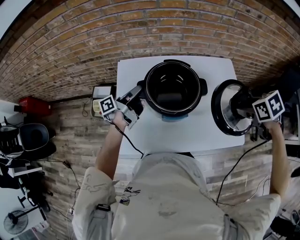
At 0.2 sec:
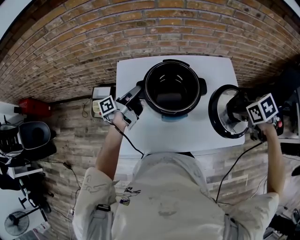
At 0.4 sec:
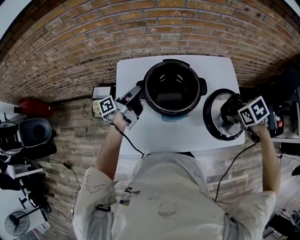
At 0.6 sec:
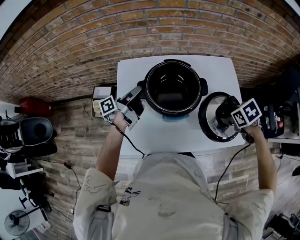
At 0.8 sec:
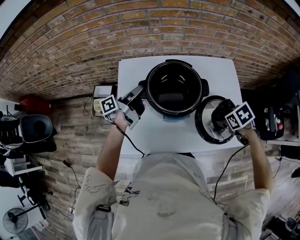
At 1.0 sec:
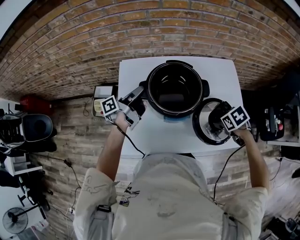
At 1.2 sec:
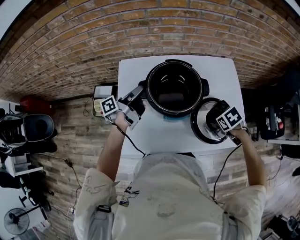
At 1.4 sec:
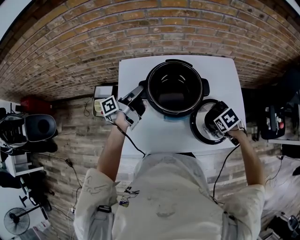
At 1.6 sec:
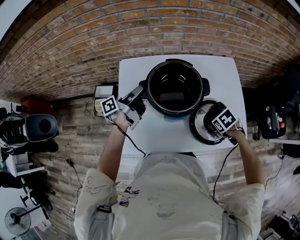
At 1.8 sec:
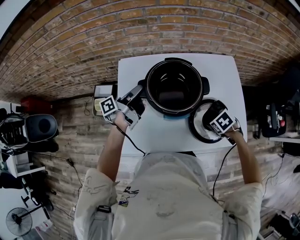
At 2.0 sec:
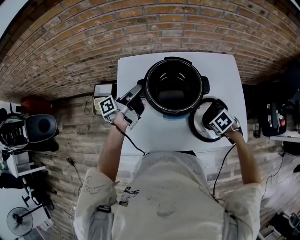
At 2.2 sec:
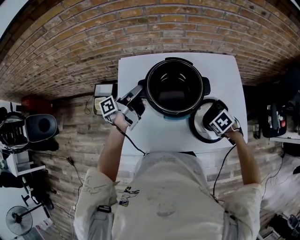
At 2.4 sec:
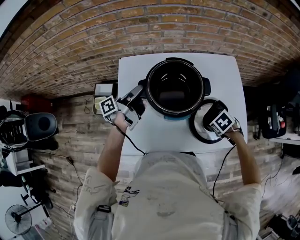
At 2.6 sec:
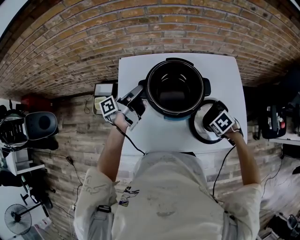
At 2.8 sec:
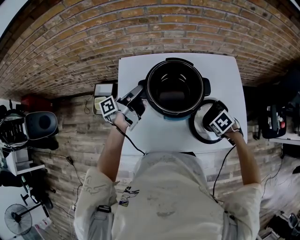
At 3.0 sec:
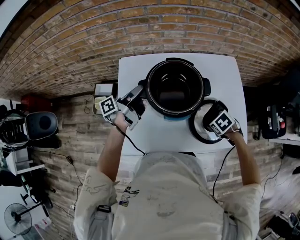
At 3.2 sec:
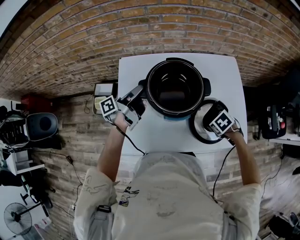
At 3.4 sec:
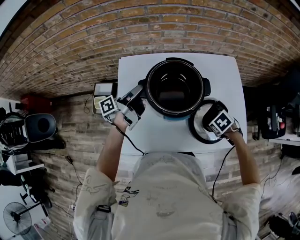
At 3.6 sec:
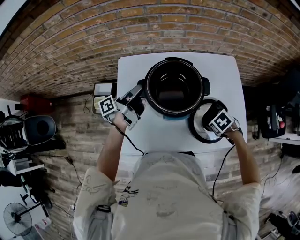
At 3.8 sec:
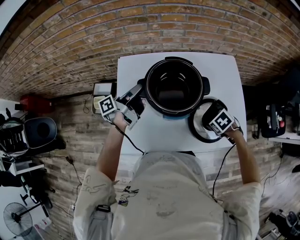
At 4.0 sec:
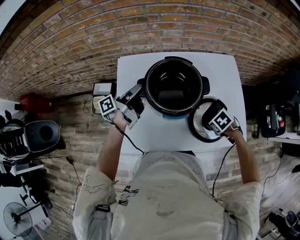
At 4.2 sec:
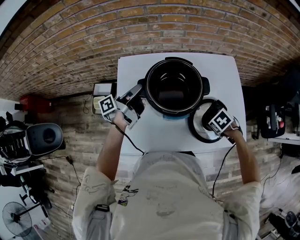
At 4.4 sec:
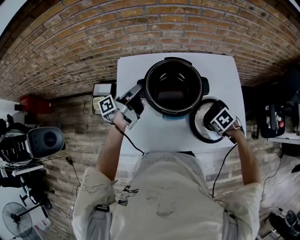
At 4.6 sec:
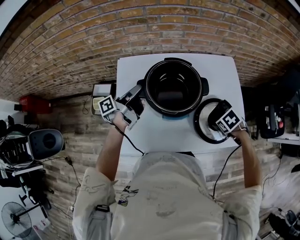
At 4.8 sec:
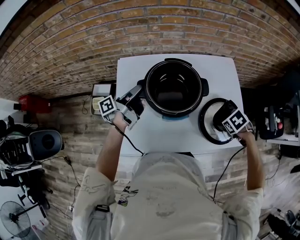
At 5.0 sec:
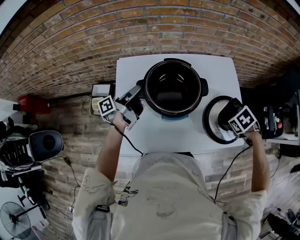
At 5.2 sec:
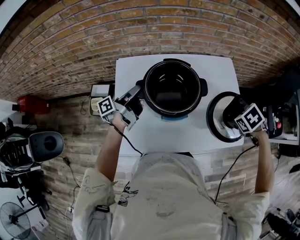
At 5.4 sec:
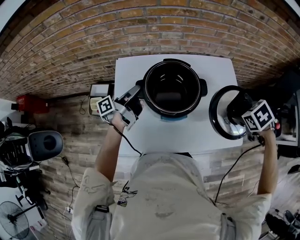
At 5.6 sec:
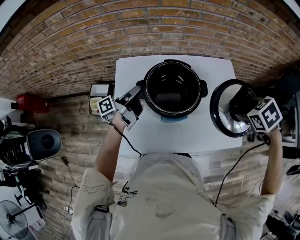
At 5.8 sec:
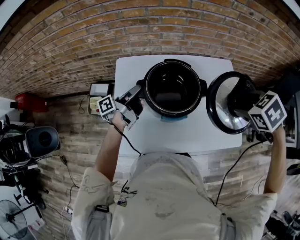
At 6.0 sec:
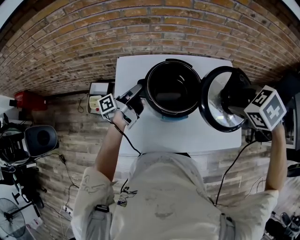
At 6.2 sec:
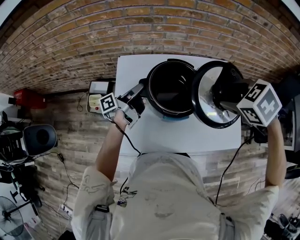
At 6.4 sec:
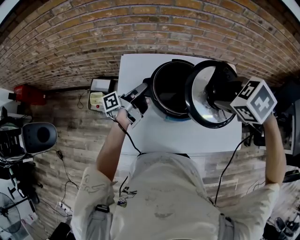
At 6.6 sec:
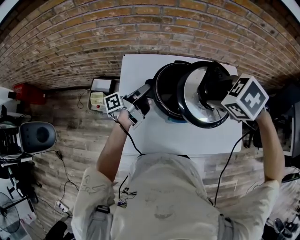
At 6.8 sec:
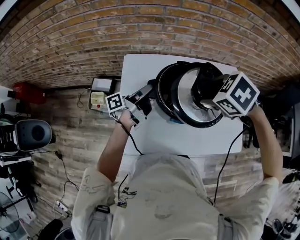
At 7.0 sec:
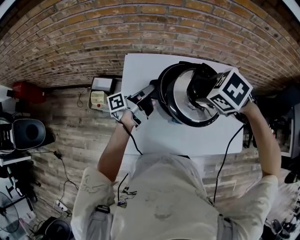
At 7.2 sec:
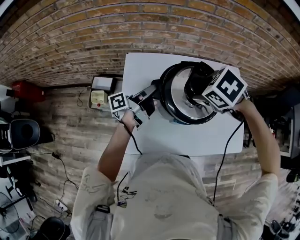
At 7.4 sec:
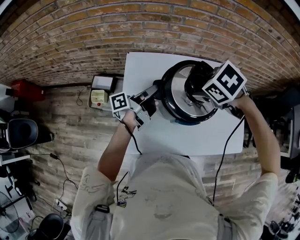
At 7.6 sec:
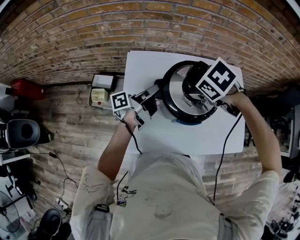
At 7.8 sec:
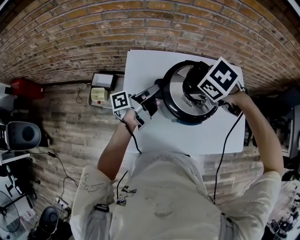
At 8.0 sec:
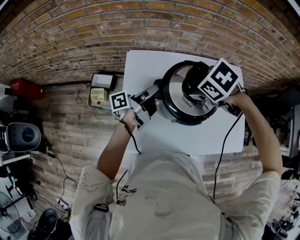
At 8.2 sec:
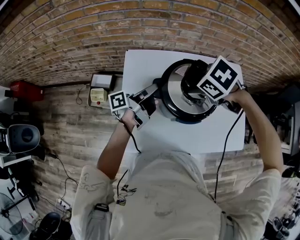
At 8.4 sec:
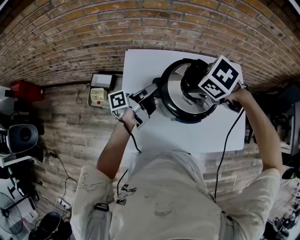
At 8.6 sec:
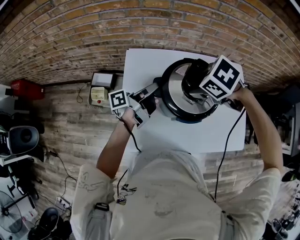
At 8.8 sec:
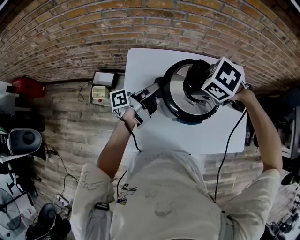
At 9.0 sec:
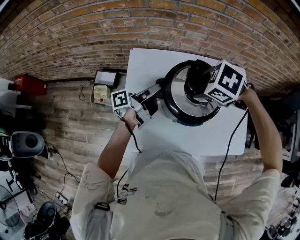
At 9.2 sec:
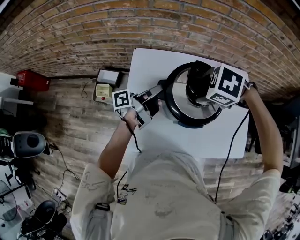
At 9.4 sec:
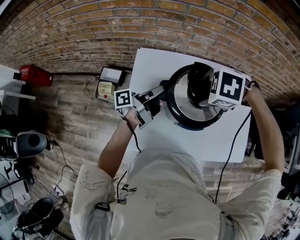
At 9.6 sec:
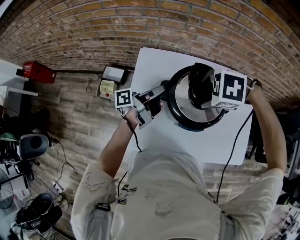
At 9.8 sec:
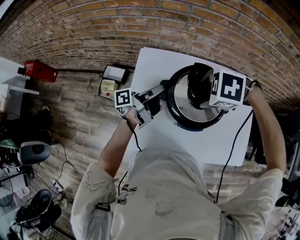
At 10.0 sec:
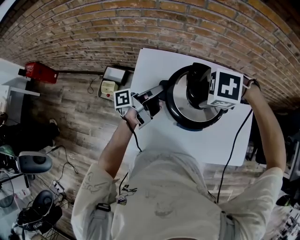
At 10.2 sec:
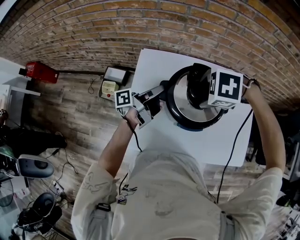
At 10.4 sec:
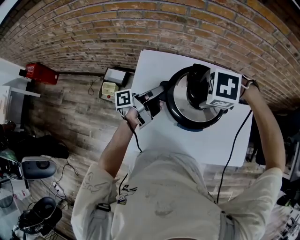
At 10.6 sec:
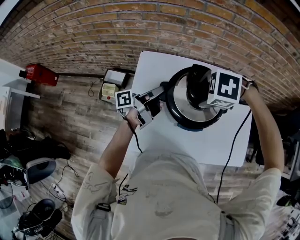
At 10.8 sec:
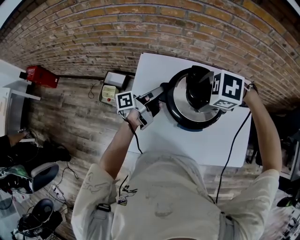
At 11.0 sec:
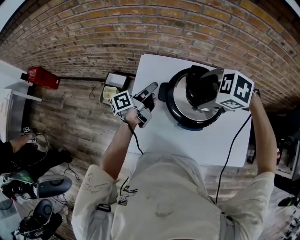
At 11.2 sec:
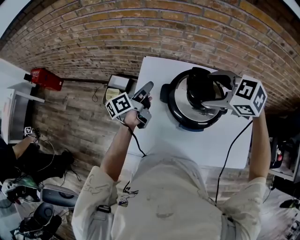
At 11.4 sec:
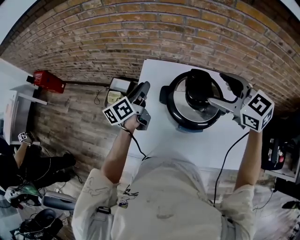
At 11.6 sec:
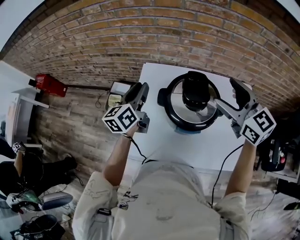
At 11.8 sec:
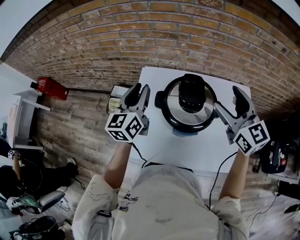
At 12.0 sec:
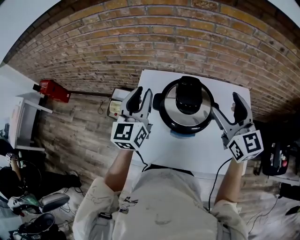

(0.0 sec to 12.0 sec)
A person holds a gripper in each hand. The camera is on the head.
0.0 sec - 1.6 sec: The right gripper is displaced downward by approximately 20 cm.
1.6 sec - 3.0 sec: The grippers stay close to where they were, moving slightly.
3.0 sec - 4.4 sec: Both grippers stay about where they are.
4.4 sec - 6.0 sec: The right gripper heads upward, covering about 25 cm.
6.0 sec - 7.6 sec: The right gripper moves roughly 20 cm.
7.6 sec - 9.0 sec: There are only small adjustments of the grippers.
9.0 sec - 10.4 sec: The right gripper rotates approximately 20 degrees.
10.4 sec - 12.0 sec: The two grippers go some 15 cm upward. The left gripper rotates around the line of its fingers by some 90 degrees, clockwise from behind. Meanwhile the right gripper tilts its fingers some 70 degrees upward.

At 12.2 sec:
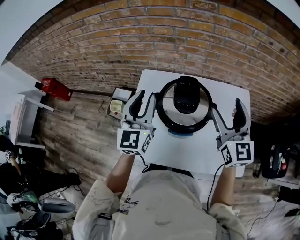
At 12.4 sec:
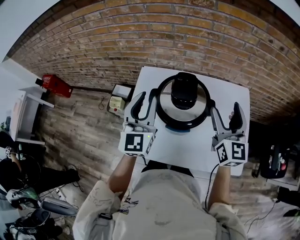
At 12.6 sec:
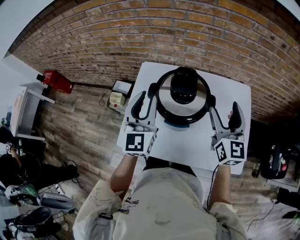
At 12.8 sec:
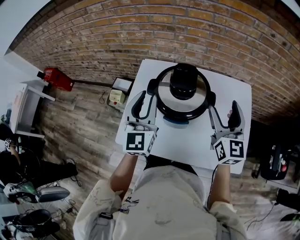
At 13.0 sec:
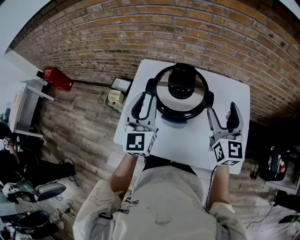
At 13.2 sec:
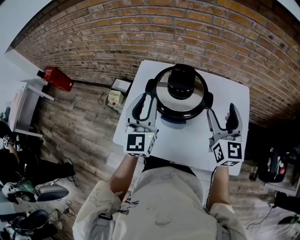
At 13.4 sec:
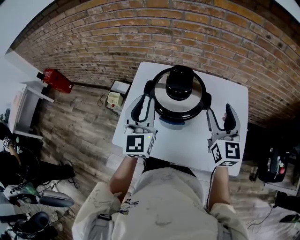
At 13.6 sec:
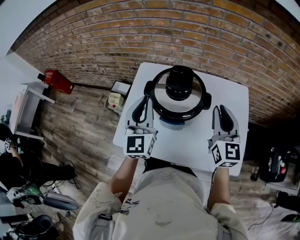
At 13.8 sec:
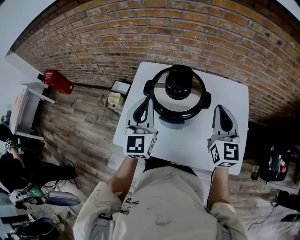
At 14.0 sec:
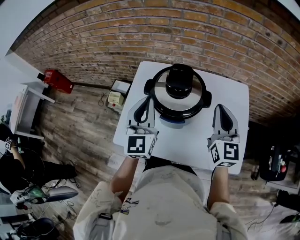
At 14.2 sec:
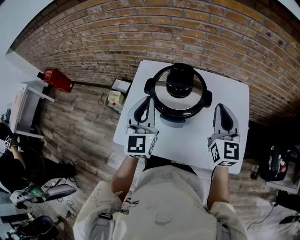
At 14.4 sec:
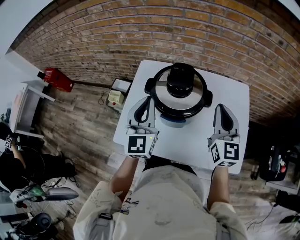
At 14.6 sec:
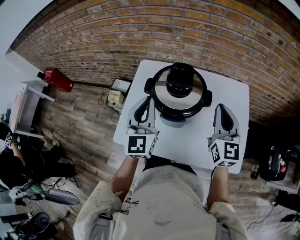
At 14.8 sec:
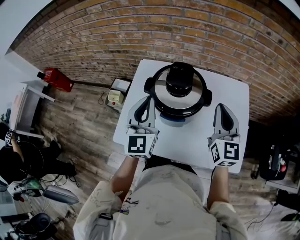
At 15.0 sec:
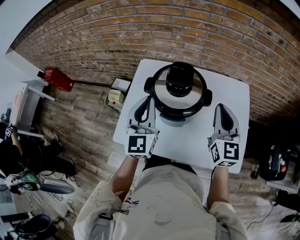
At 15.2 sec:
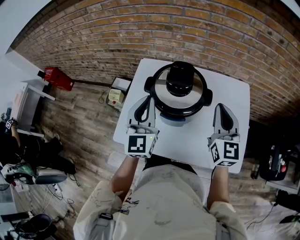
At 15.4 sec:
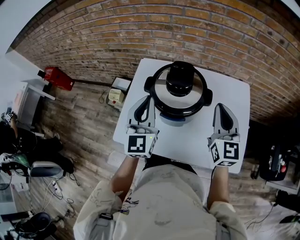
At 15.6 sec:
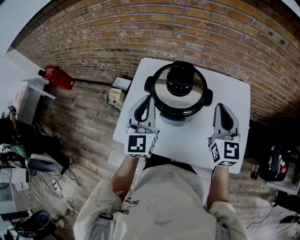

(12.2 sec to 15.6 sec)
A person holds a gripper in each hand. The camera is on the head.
12.2 sec - 13.8 sec: The right gripper is displaced downward by approximately 5 cm, and closes, while the left gripper moves backward, about 5 cm, and closes up.
13.8 sec - 15.6 sec: Neither gripper changes place.

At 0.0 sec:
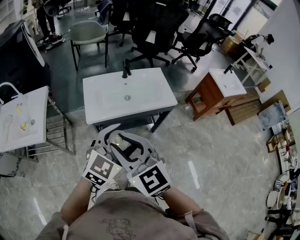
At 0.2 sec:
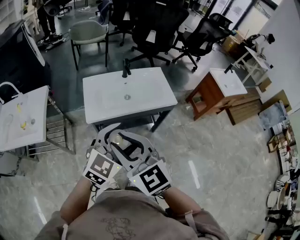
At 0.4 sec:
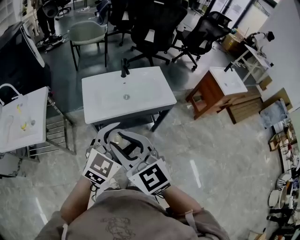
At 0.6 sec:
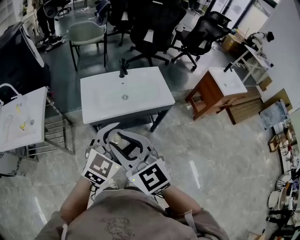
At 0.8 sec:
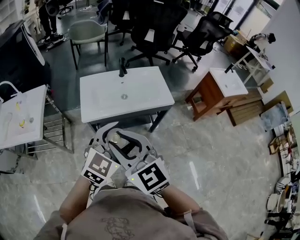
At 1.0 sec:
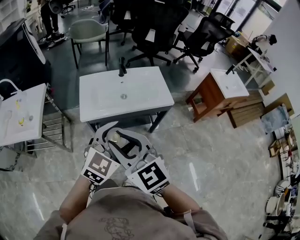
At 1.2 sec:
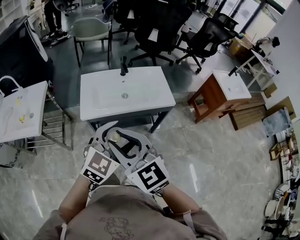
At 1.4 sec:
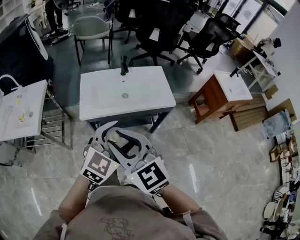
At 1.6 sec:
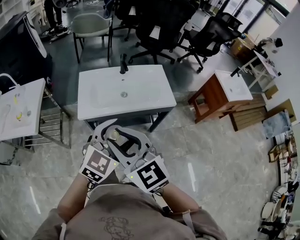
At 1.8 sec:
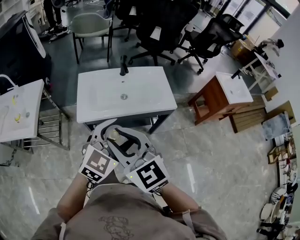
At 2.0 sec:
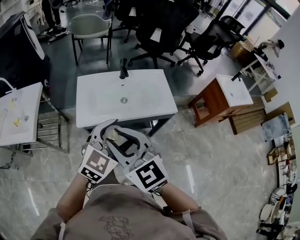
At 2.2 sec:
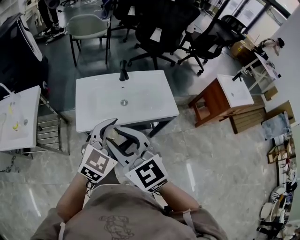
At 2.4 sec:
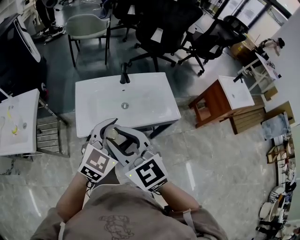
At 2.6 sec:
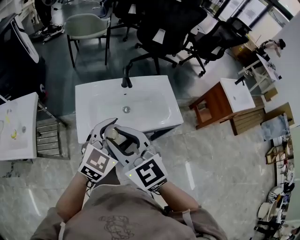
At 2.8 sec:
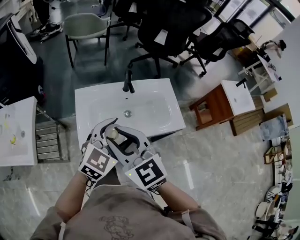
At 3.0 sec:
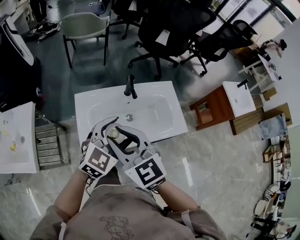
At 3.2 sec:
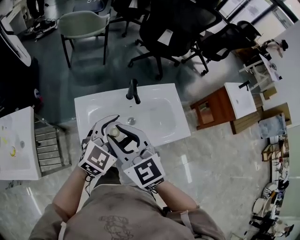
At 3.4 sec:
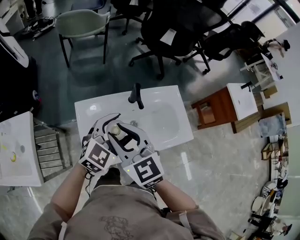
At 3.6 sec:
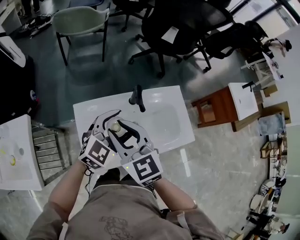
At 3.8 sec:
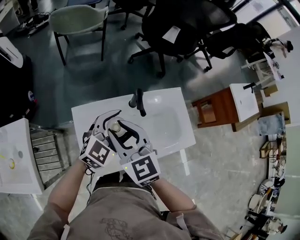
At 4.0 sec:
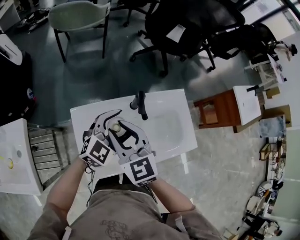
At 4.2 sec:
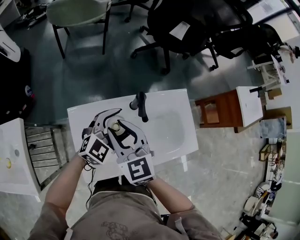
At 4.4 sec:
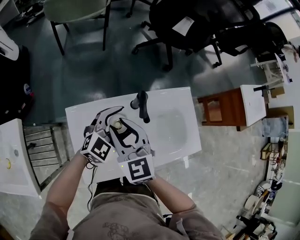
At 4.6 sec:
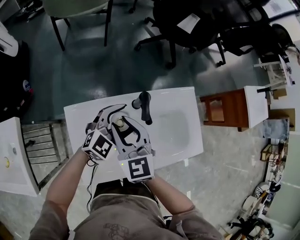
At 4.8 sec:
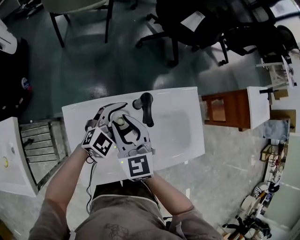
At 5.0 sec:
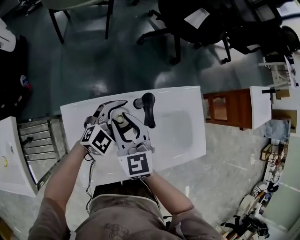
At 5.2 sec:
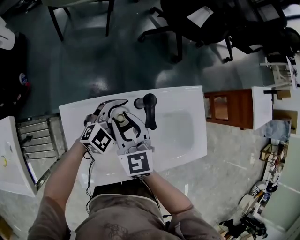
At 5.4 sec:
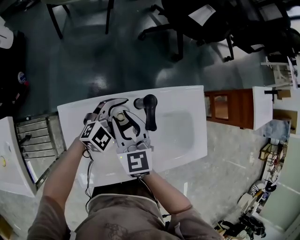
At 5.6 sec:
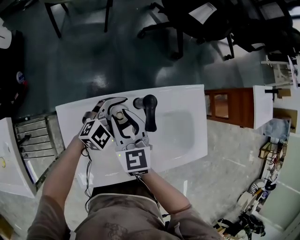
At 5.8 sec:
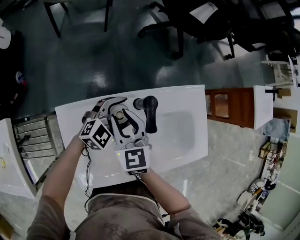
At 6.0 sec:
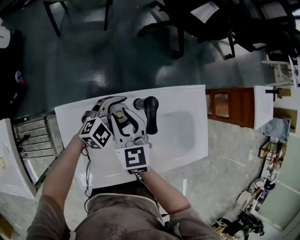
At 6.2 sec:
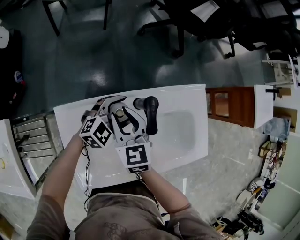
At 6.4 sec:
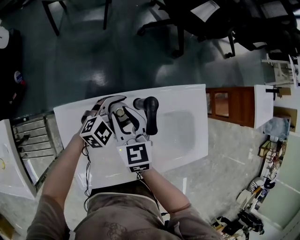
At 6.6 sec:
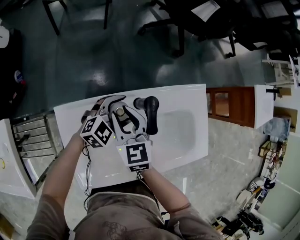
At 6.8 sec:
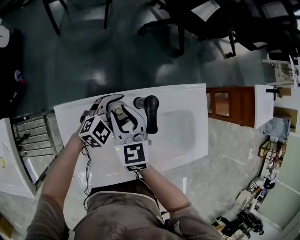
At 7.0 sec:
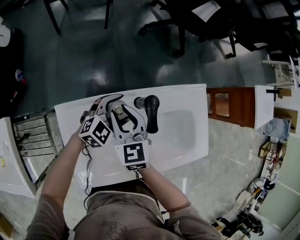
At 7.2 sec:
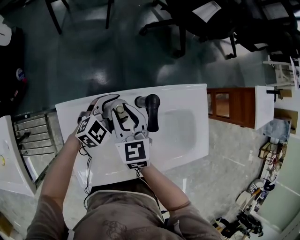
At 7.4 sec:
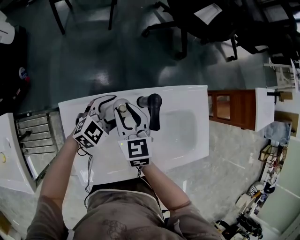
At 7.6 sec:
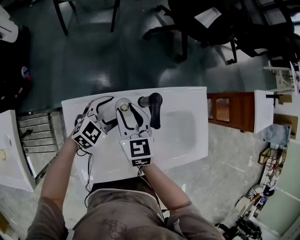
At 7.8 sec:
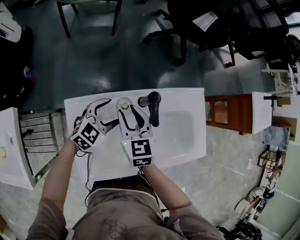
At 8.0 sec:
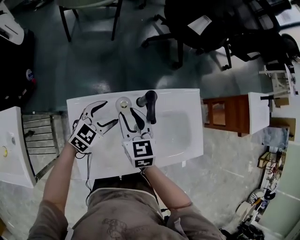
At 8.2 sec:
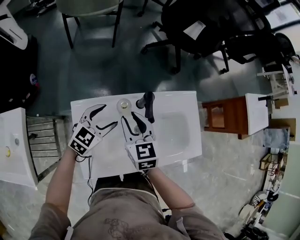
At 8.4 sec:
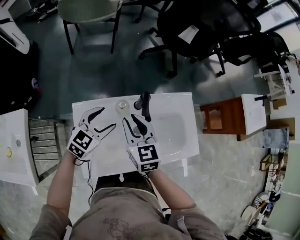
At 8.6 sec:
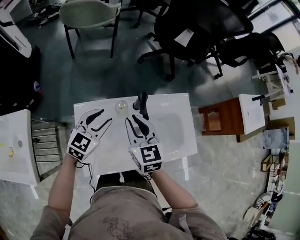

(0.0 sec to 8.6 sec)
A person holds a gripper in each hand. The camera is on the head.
0.0 sec - 1.4 sec: The two grippers go about 5 cm to the right.
1.4 sec - 2.8 sec: Both grippers travel together forward, about 25 cm.
2.8 sec - 4.4 sec: The two grippers go roughly 30 cm forward and downward.
4.4 sec - 5.8 sec: The grippers both shift downward and forward by roughly 15 cm.
5.8 sec - 7.2 sec: The grippers stay close to where they were, moving slightly.
7.2 sec - 8.6 sec: The left gripper shifts approximately 20 cm upward, backward and to the left, changes its angle by approximately 20 degrees, and closes its fingers; the right gripper travels upward and backward by some 15 cm.
